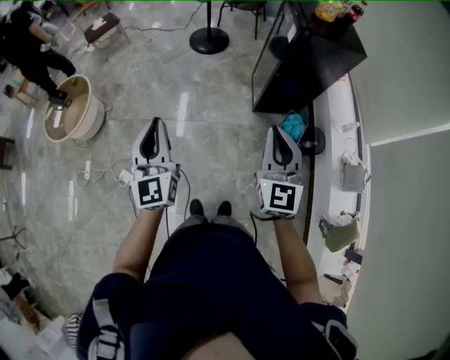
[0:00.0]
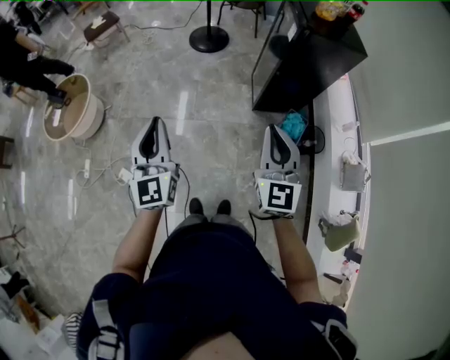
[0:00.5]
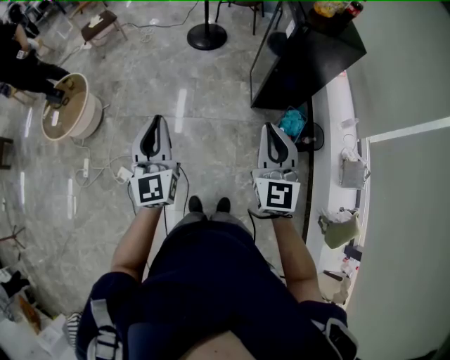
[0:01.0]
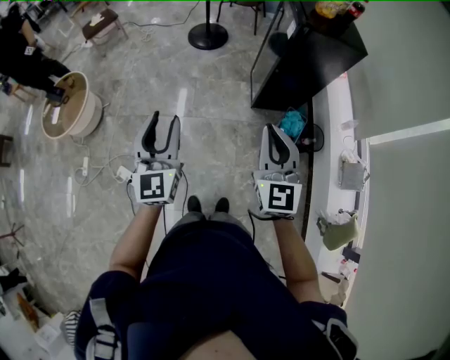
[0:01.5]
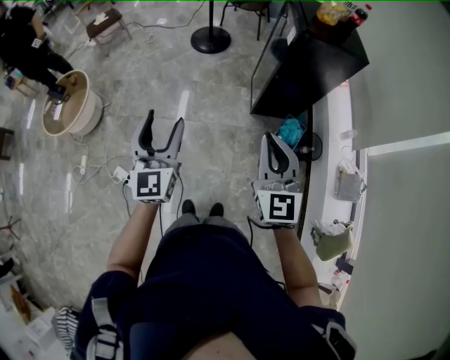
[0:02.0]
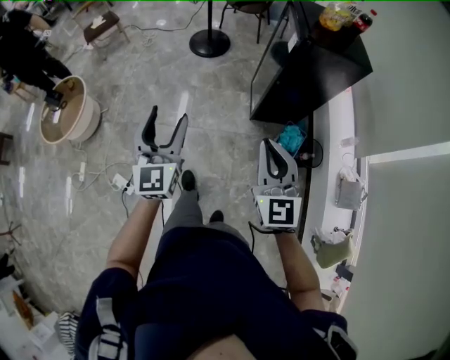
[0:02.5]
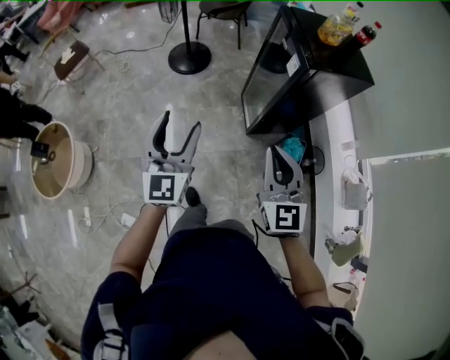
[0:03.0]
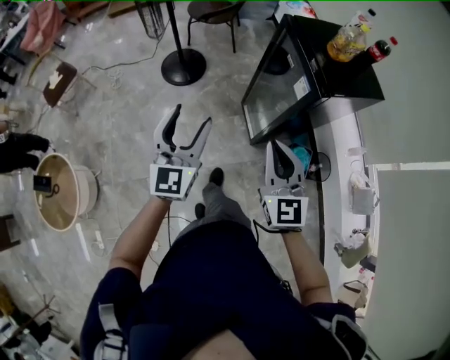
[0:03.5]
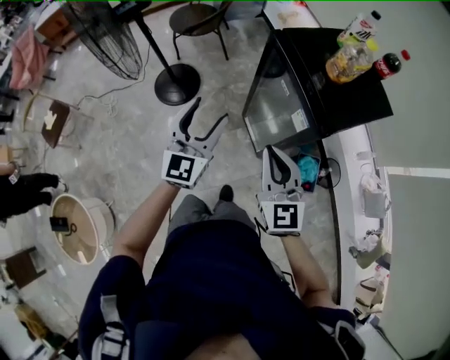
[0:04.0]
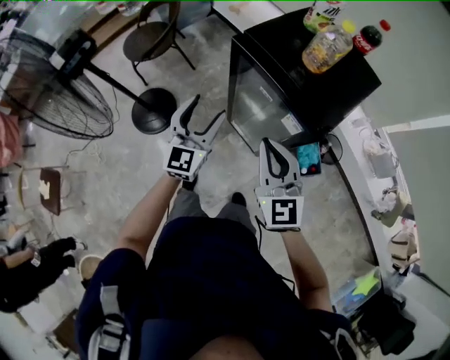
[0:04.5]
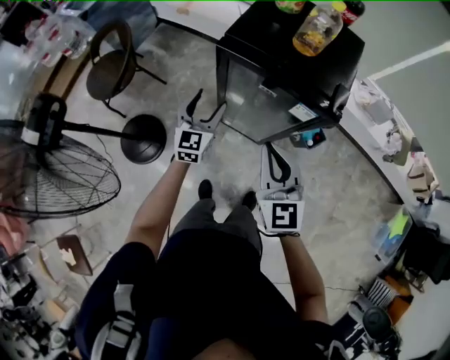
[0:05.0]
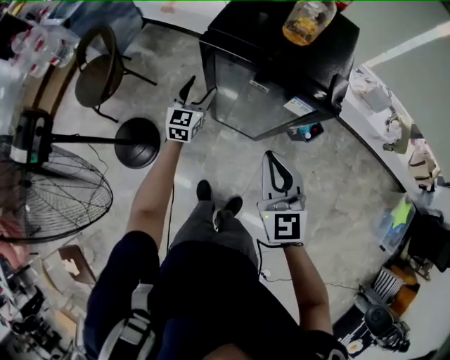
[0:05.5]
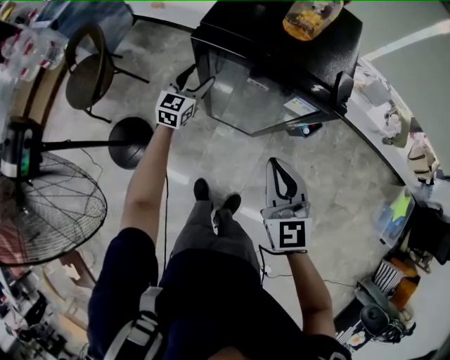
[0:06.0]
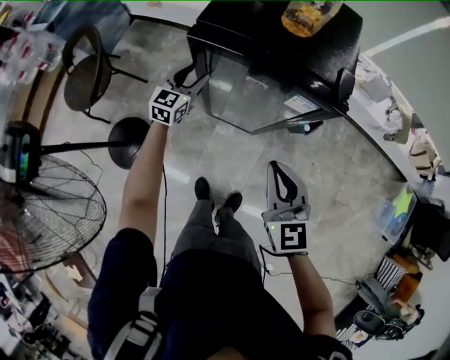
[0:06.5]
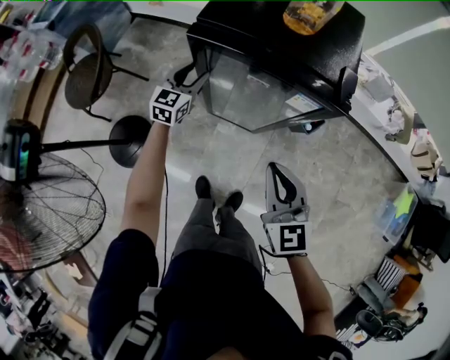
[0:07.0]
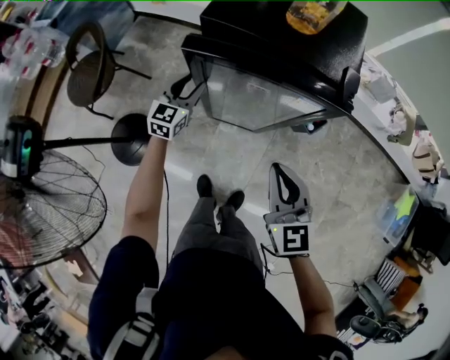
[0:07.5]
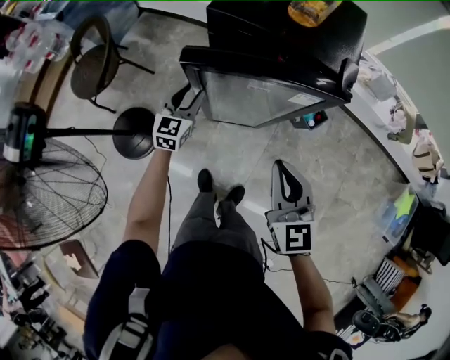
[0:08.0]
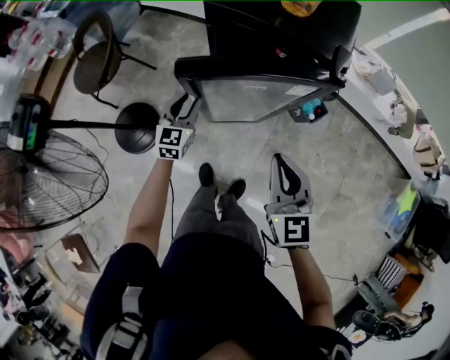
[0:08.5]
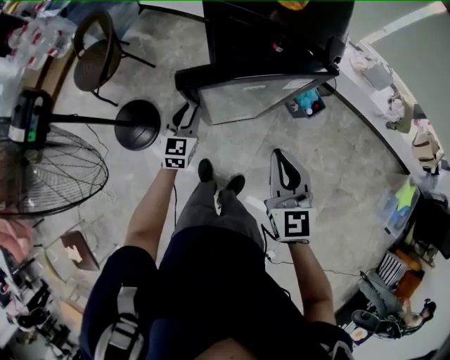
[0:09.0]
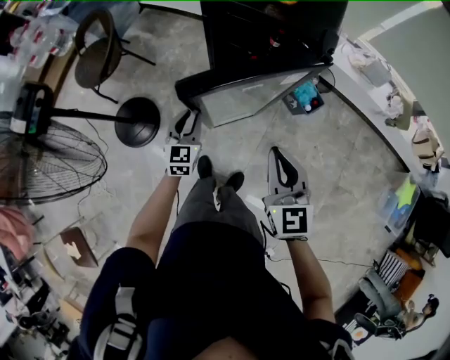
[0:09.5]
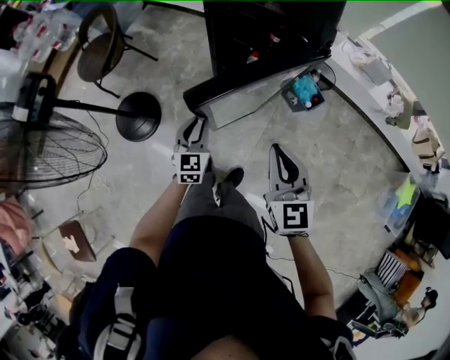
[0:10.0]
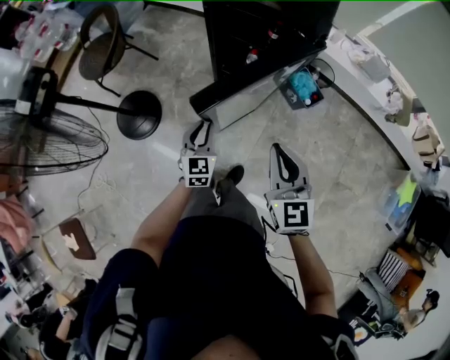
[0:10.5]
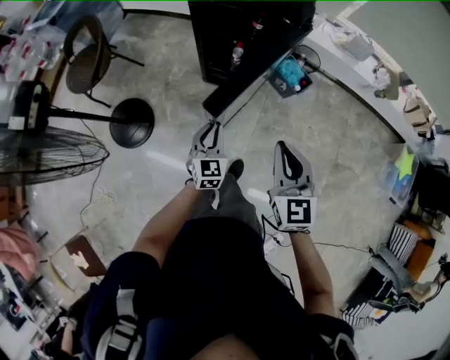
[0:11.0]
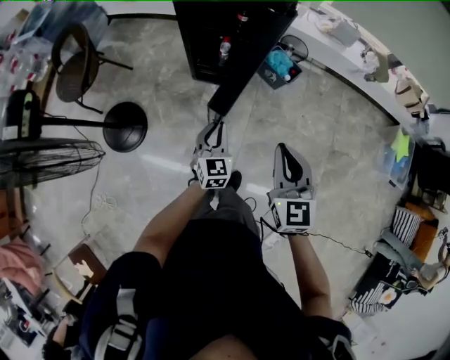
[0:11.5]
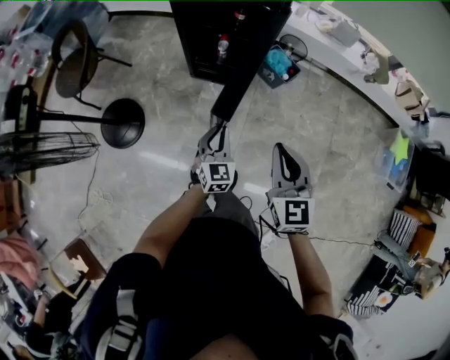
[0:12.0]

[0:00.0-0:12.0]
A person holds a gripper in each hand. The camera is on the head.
0:00.0 to 0:02.0: The left gripper is displaced to the right by roughly 5 cm, and opens up.
0:02.0 to 0:04.0: The pair of grippers is taken roughly 60 cm. The left gripper rotates about 40 degrees. Meanwhile the right gripper rotates roughly 20 degrees.
0:04.0 to 0:06.0: The left gripper moves roughly 40 cm, and rotates some 50 degrees, while the right gripper ends up some 15 cm from where it was, and changes its angle by about 50 degrees.
0:06.0 to 0:08.0: The left gripper travels backward by roughly 10 cm, and closes.
0:08.0 to 0:10.0: The left gripper shifts some 25 cm backward. The right gripper goes about 10 cm backward.
0:10.0 to 0:12.0: The left gripper is displaced backward and to the right by roughly 15 cm. The right gripper heads backward, covering approximately 15 cm.

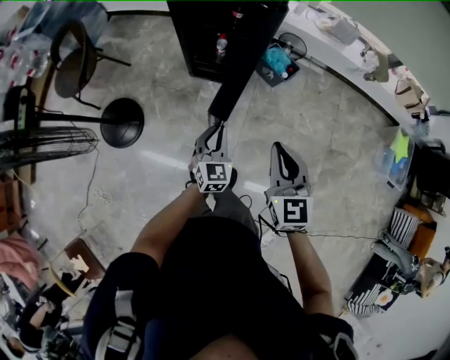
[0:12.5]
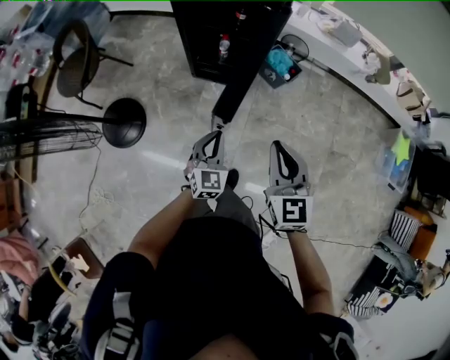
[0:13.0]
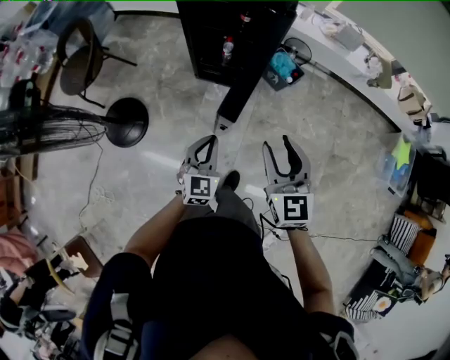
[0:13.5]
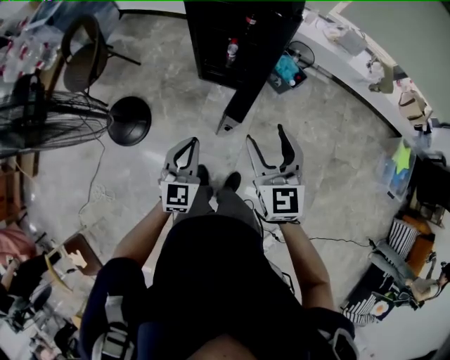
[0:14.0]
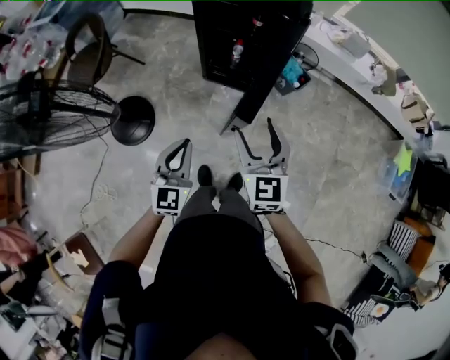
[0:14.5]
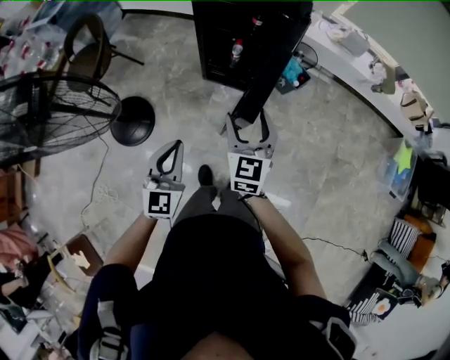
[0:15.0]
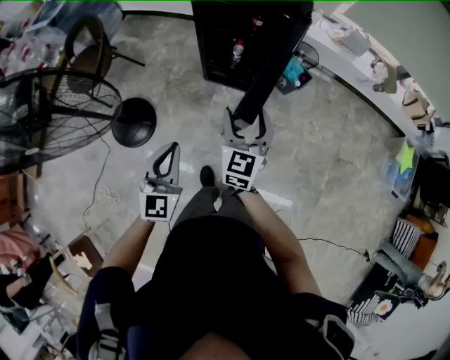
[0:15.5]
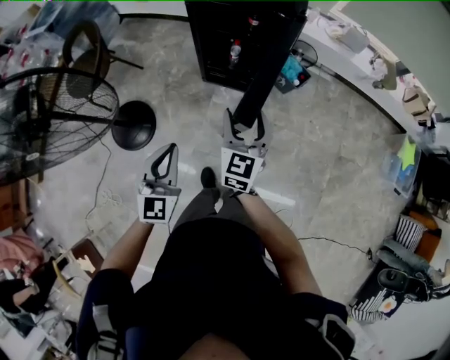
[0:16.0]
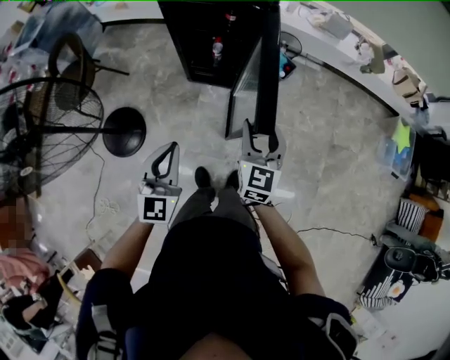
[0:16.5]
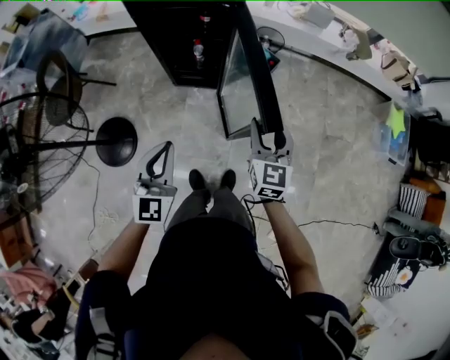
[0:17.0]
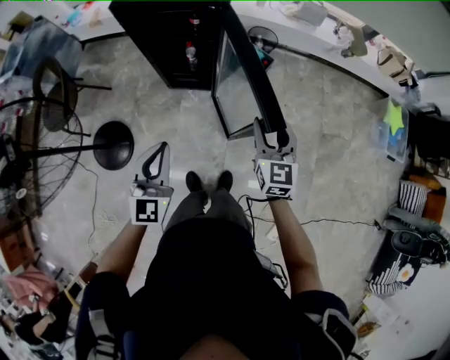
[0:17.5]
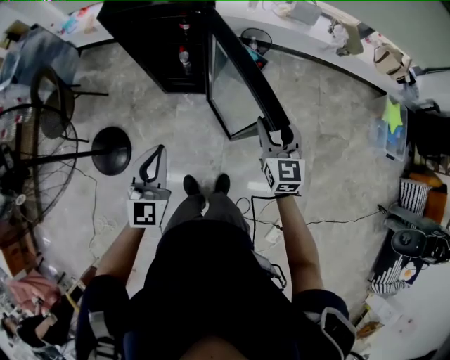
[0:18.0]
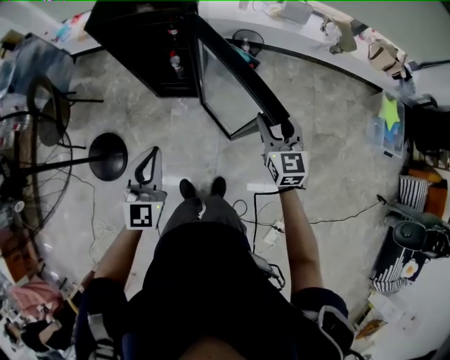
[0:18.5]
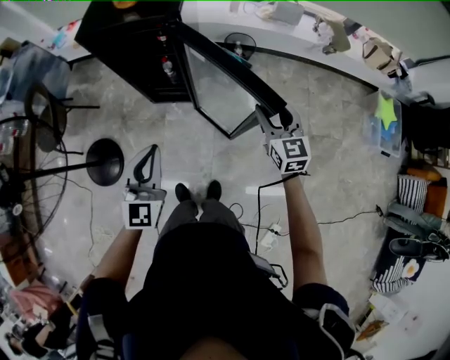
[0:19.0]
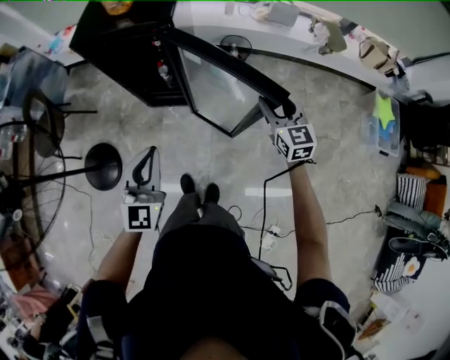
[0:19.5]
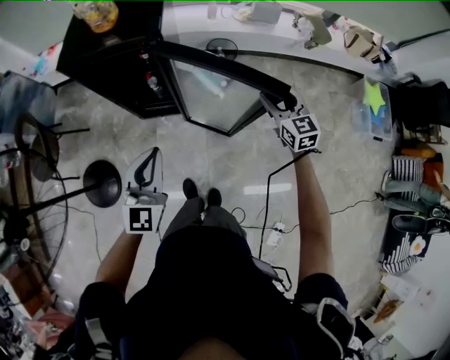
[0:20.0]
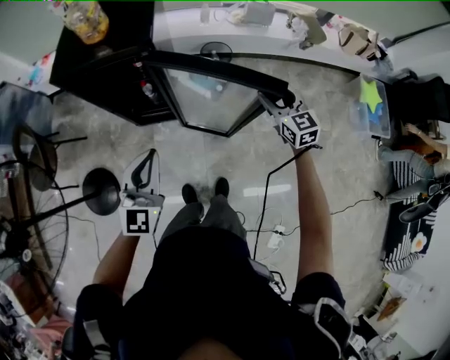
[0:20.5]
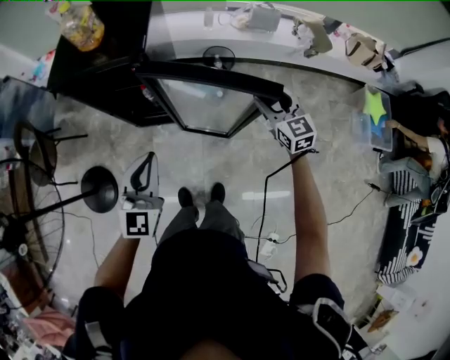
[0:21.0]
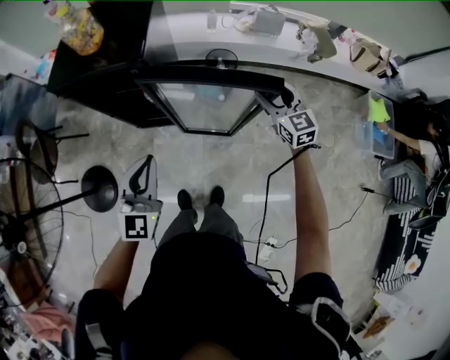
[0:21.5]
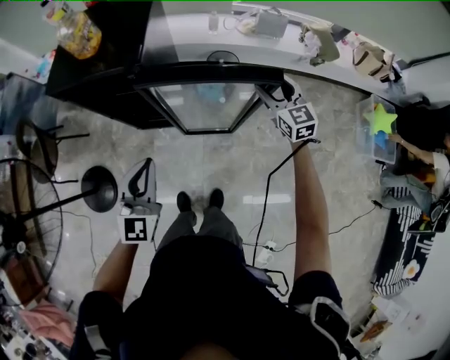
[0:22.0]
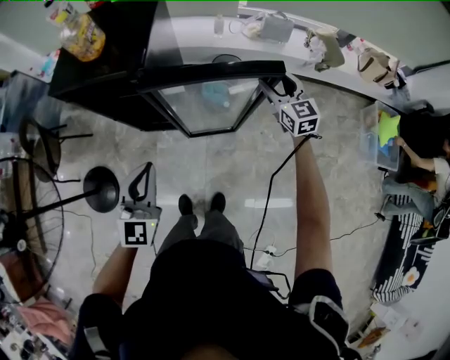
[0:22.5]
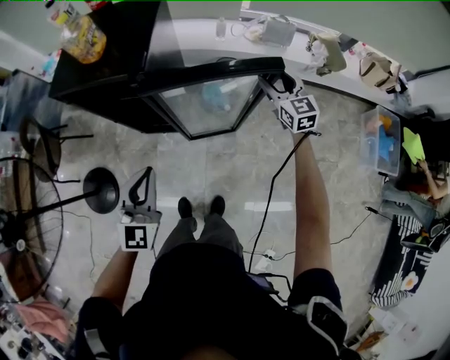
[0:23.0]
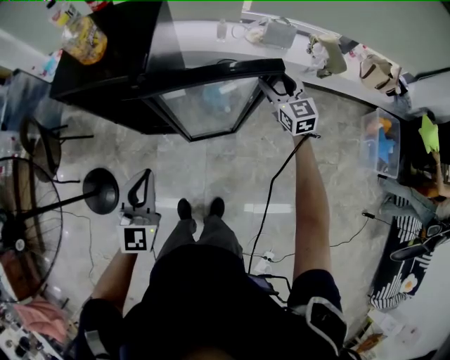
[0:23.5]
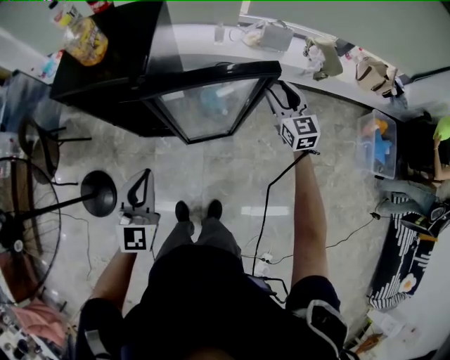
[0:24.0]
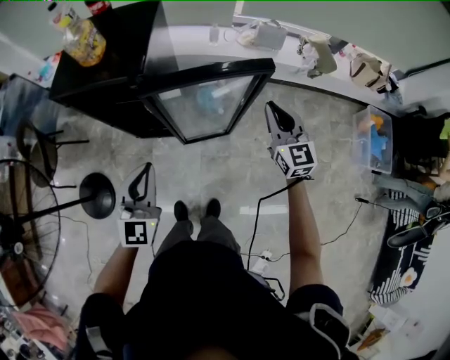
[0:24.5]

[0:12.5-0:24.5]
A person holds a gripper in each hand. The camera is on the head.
0:12.5 to 0:14.5: The left gripper heads to the left and upward, covering about 20 cm. Meanwhile the right gripper travels to the left by about 10 cm, and opens up.
0:14.5 to 0:16.5: The right gripper heads to the right, covering approximately 10 cm, and swivels some 20 degrees.
0:16.5 to 0:18.5: The right gripper moves to the right, roughly 20 cm, while the left gripper heads to the right and forward, covering approximately 15 cm.
0:18.5 to 0:20.5: The two grippers go about 15 cm forward and to the right.
0:20.5 to 0:22.5: The right gripper moves forward, about 15 cm, while the left gripper shifts approximately 5 cm forward.
0:22.5 to 0:24.5: The right gripper heads backward and upward, covering some 10 cm, and closes its fingers.

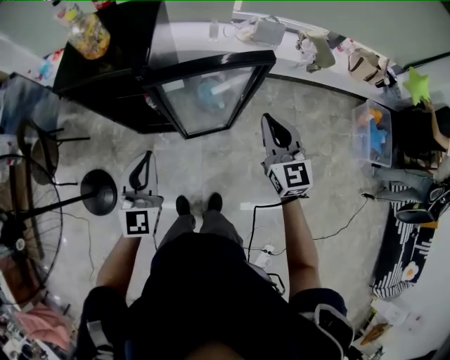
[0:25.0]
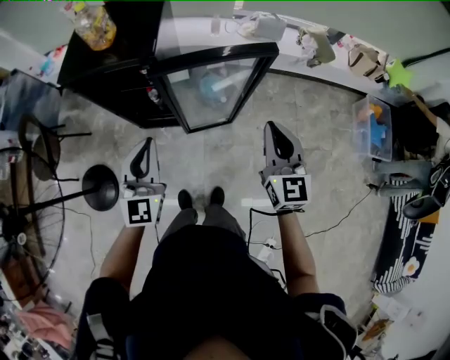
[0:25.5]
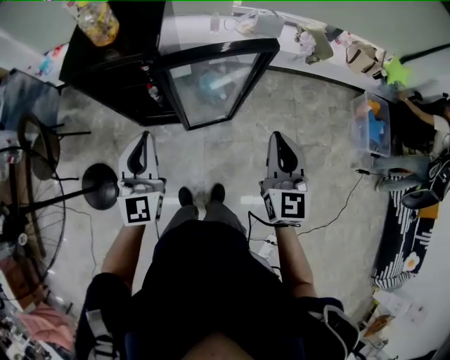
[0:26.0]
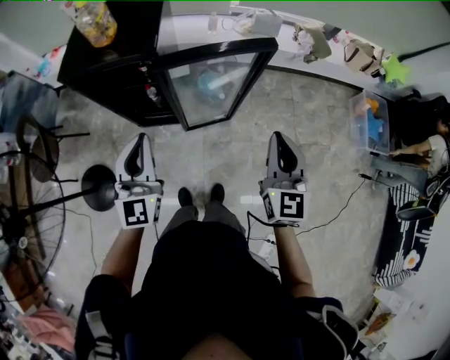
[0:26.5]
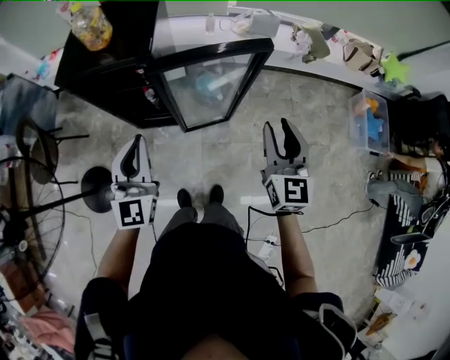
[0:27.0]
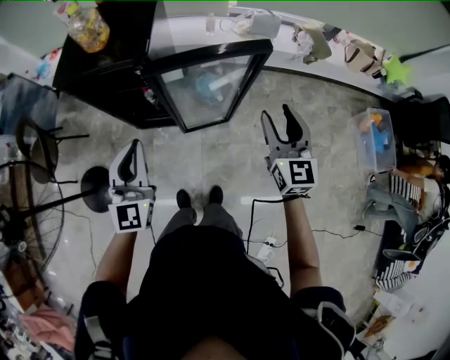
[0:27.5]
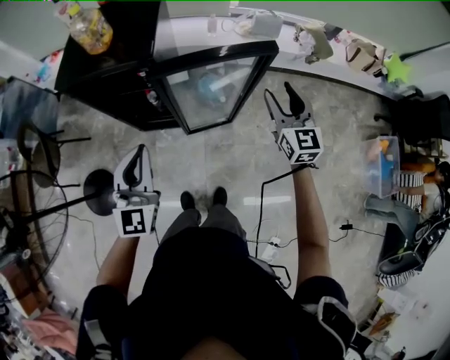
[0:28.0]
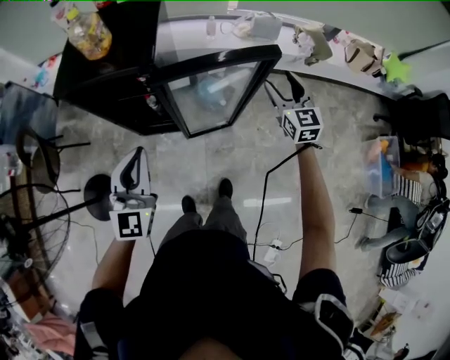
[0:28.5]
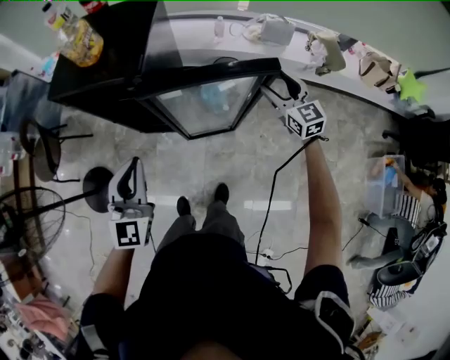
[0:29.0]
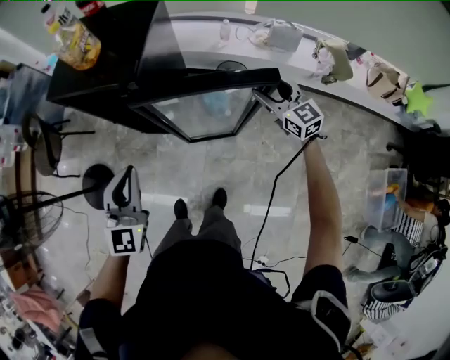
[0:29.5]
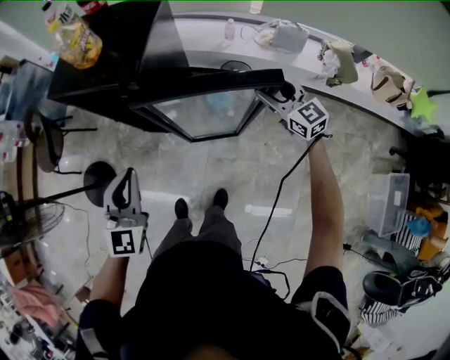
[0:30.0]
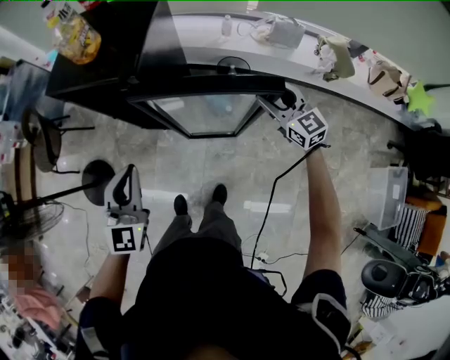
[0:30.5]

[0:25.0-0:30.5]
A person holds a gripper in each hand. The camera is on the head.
0:25.0 to 0:27.0: The right gripper travels backward by some 5 cm, and opens up; the left gripper shifts by some 5 cm.
0:27.0 to 0:28.5: The right gripper travels forward and downward by some 20 cm, and opens.
0:28.5 to 0:30.5: The left gripper is displaced to the right by some 5 cm. Meanwhile the right gripper travels downward and forward by some 10 cm, and swivels about 30 degrees.
